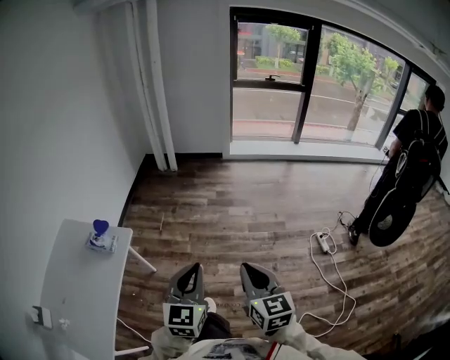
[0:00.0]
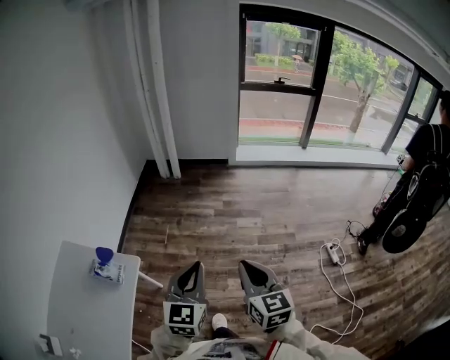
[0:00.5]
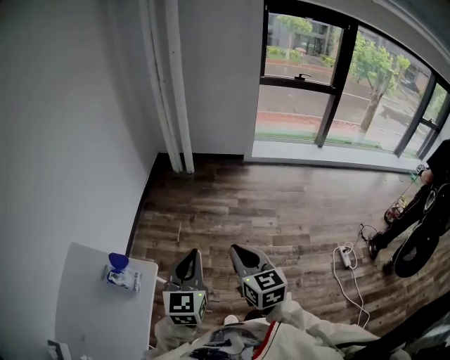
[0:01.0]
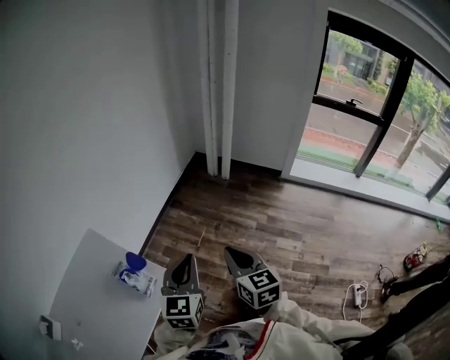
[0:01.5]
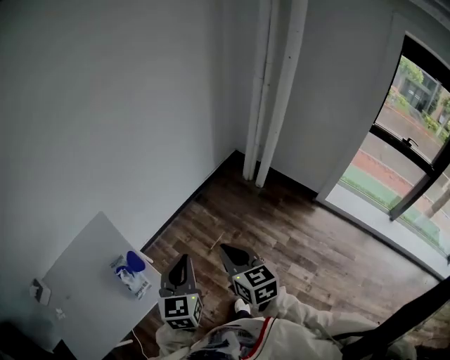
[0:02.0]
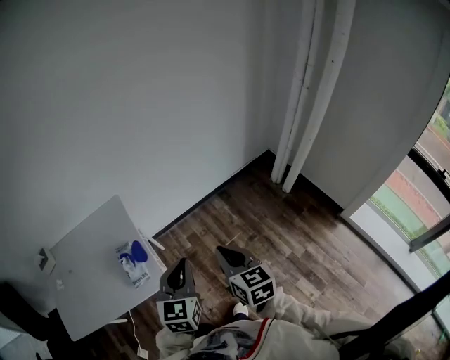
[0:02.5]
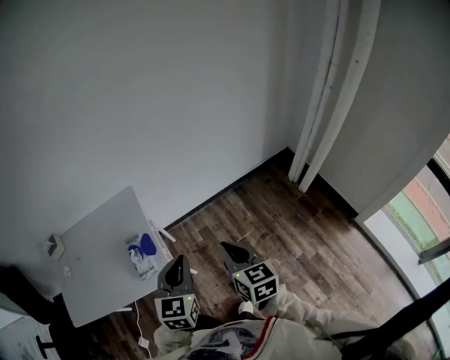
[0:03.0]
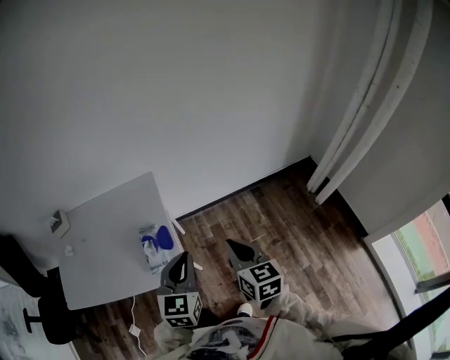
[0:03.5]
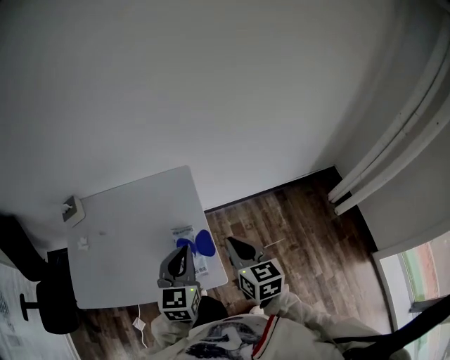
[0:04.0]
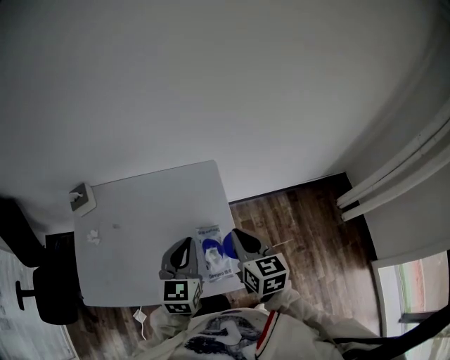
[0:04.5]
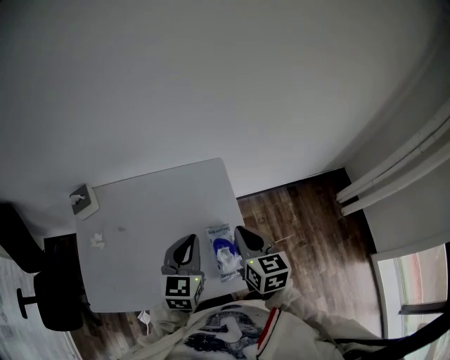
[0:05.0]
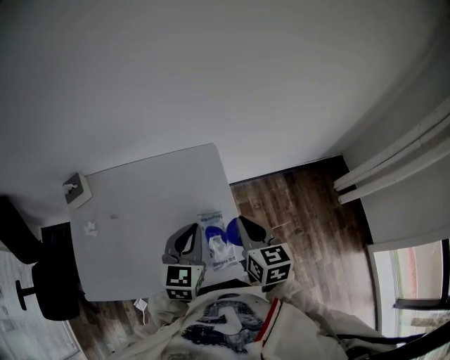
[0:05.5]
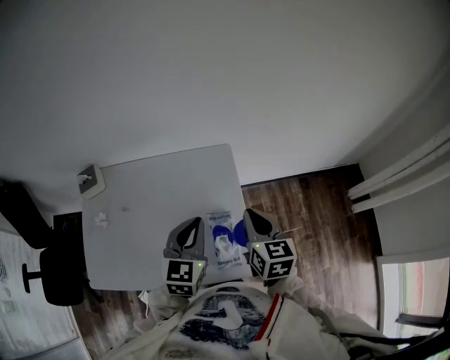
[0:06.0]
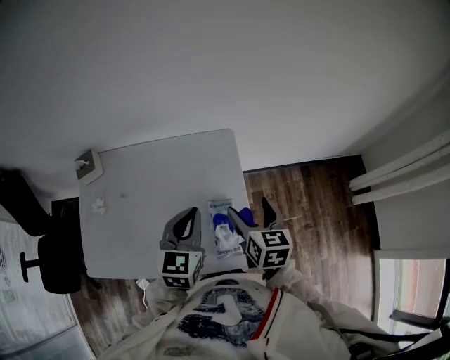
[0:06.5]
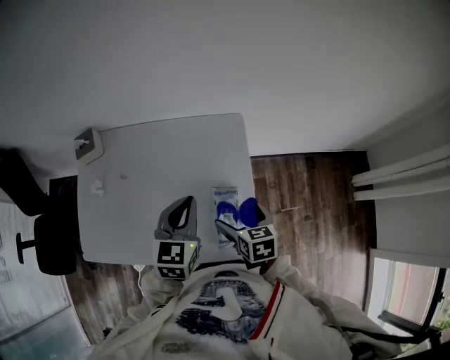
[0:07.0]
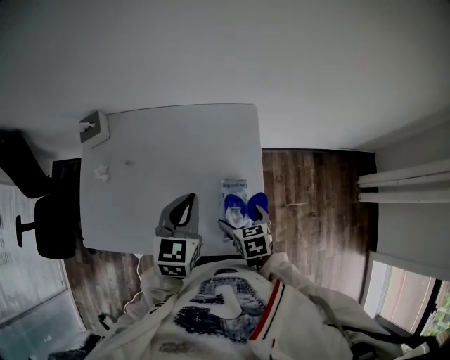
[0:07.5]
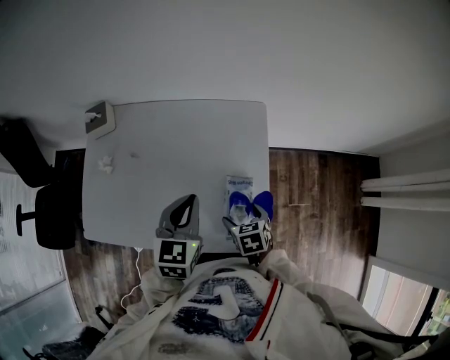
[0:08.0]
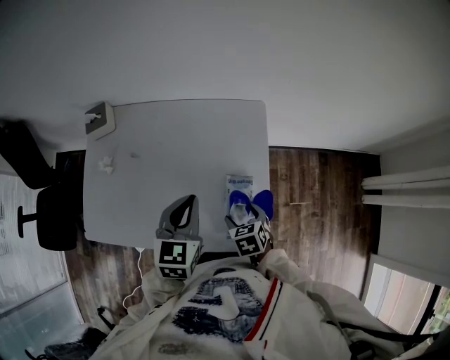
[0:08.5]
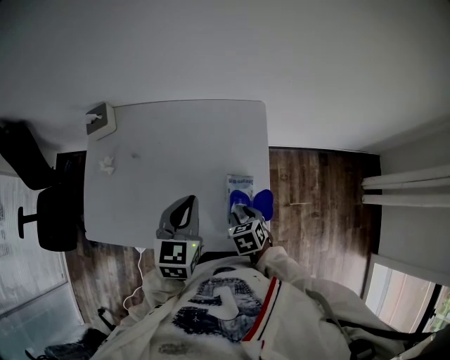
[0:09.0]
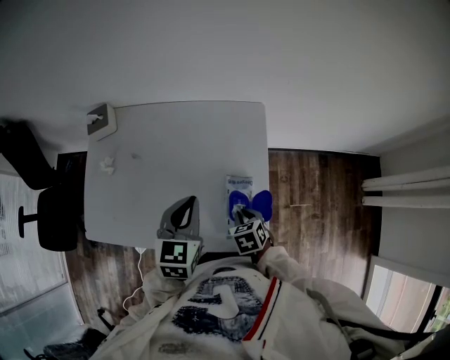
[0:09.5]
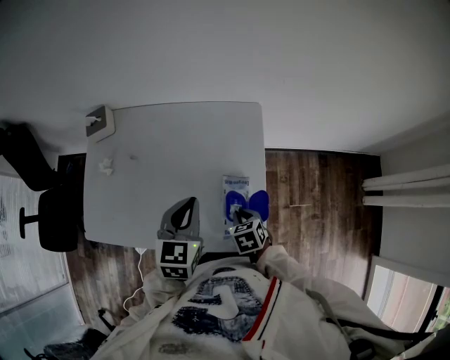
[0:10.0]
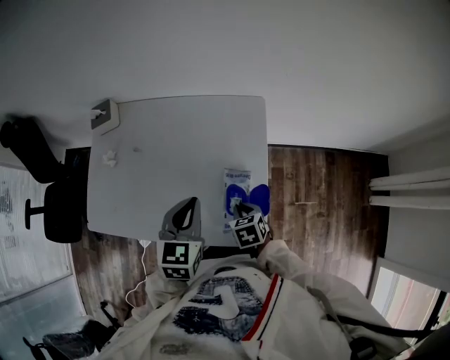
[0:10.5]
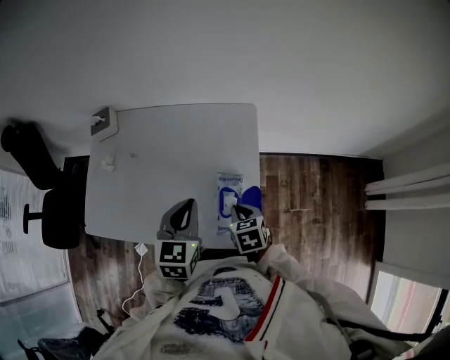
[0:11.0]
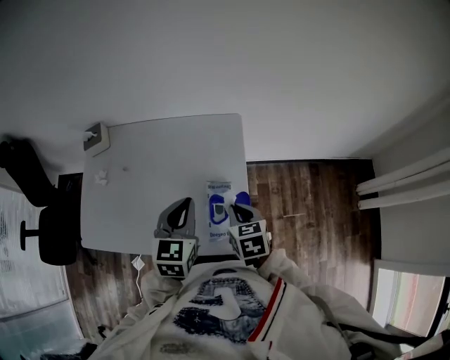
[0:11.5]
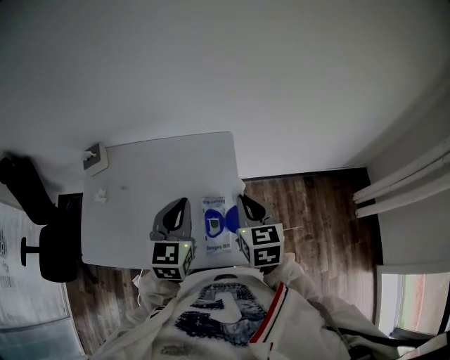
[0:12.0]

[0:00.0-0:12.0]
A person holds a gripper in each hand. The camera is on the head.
0:00.0 to 0:02.0: The pair of grippers is taken some 60 cm. The left gripper turns by approximately 50 degrees. Meanwhile the right gripper turns by some 50 degrees.
0:02.0 to 0:04.0: The left gripper changes place by about 30 cm, and turns by approximately 30 degrees. The right gripper shifts by roughly 30 cm, and swivels about 30 degrees.
0:04.0 to 0:06.0: The two grippers go roughly 15 cm to the left and forward.
0:06.0 to 0:08.0: The right gripper heads downward and to the left, covering some 25 cm, tilts its fingers about 30 degrees downward, and opens up; the left gripper travels to the left and downward by about 10 cm.
0:08.0 to 0:10.0: The right gripper closes up.
0:10.0 to 0:12.0: The right gripper is displaced upward and to the right by approximately 25 cm, and points its fingers about 30 degrees further upward, while the left gripper shifts some 10 cm upward and to the right.

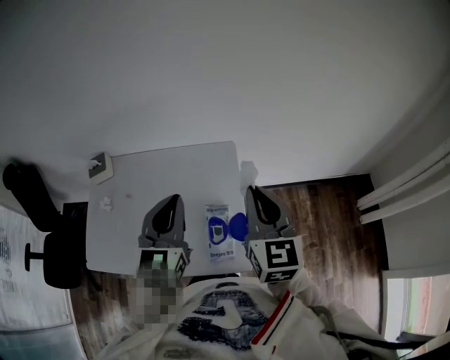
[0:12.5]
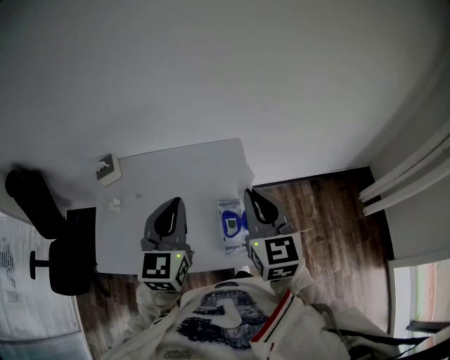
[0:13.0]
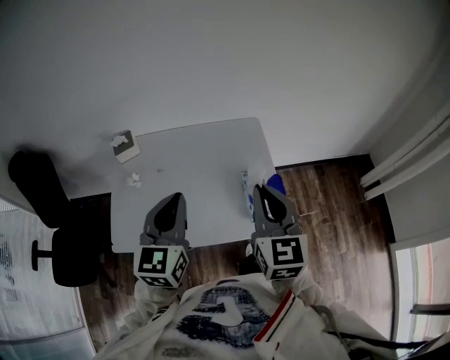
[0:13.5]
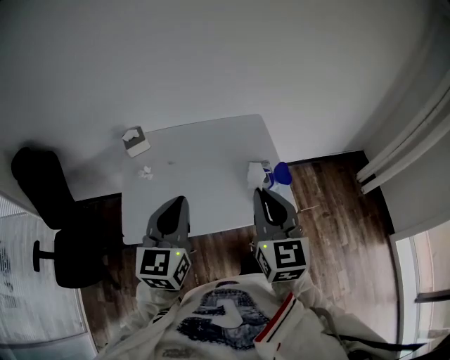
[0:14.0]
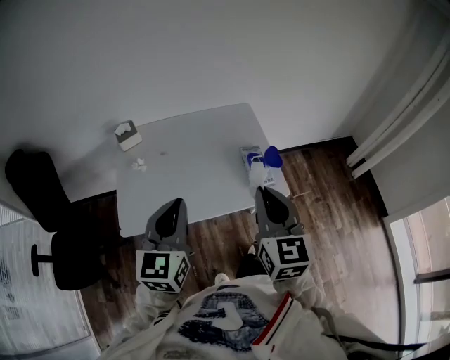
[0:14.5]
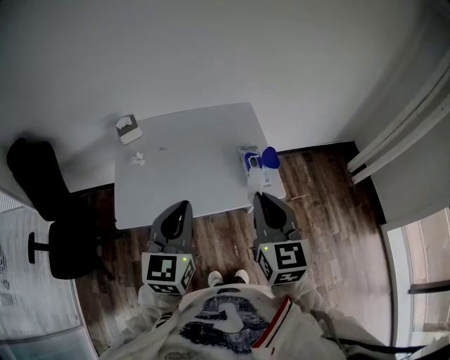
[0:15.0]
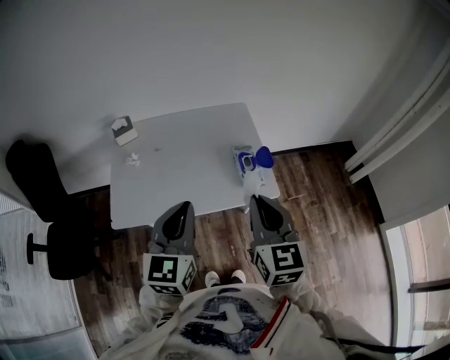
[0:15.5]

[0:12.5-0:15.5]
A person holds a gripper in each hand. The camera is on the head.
0:12.5 to 0:14.0: The left gripper is displaced to the left and backward by approximately 30 cm. Meanwhile the right gripper shifts approximately 30 cm backward and to the left.
0:14.0 to 0:15.5: The left gripper shifts about 10 cm backward and to the right. The right gripper shifts some 5 cm backward.

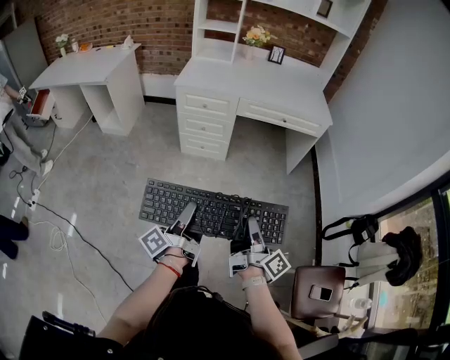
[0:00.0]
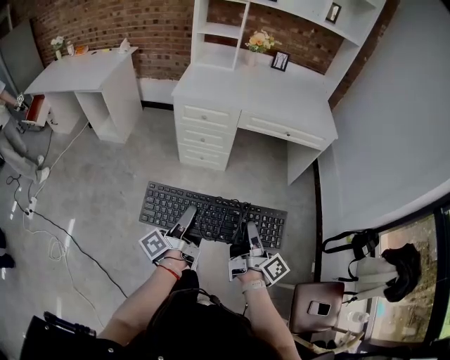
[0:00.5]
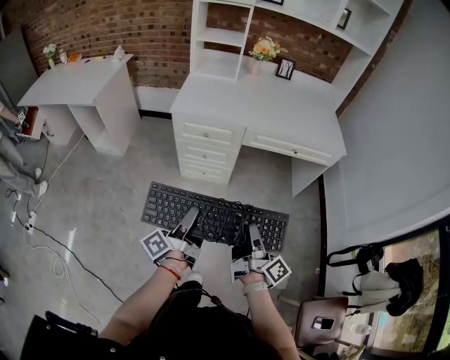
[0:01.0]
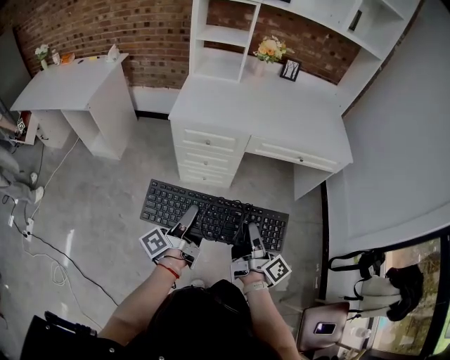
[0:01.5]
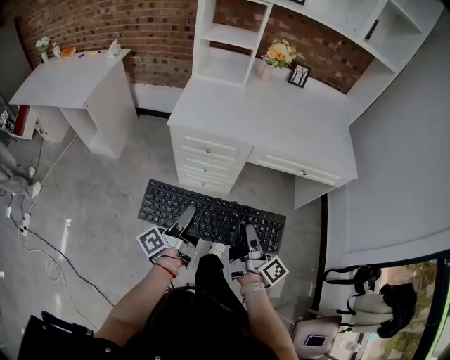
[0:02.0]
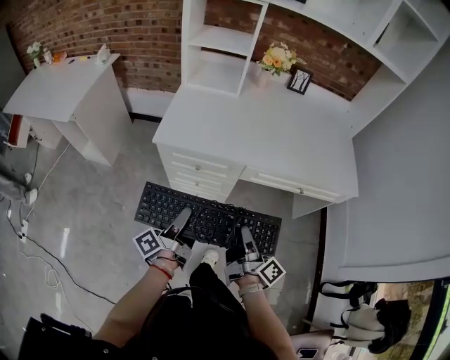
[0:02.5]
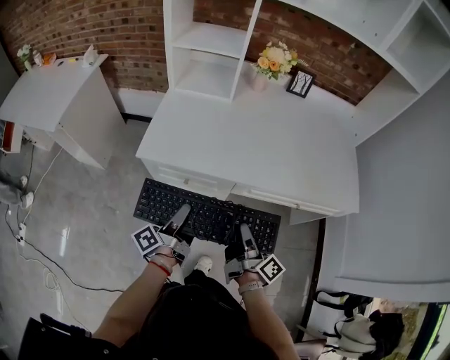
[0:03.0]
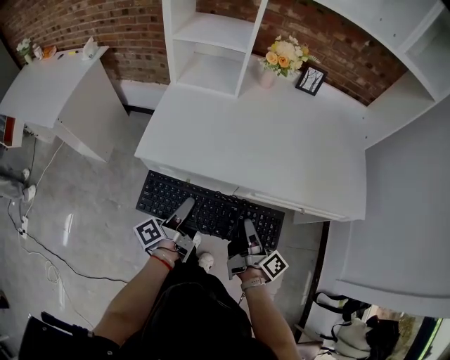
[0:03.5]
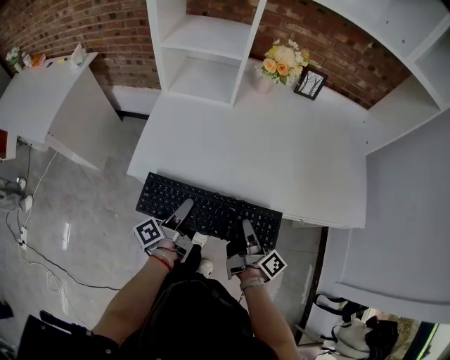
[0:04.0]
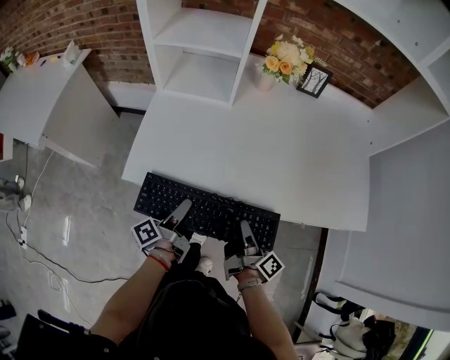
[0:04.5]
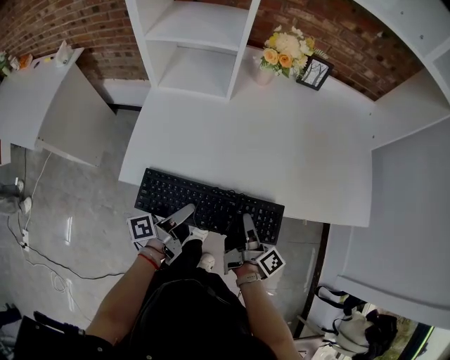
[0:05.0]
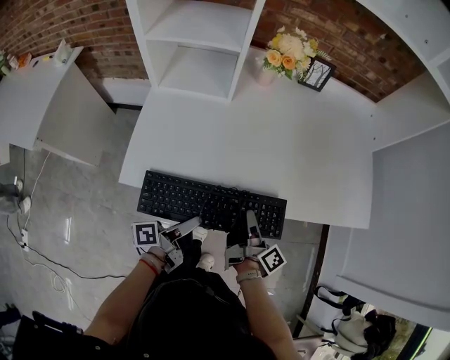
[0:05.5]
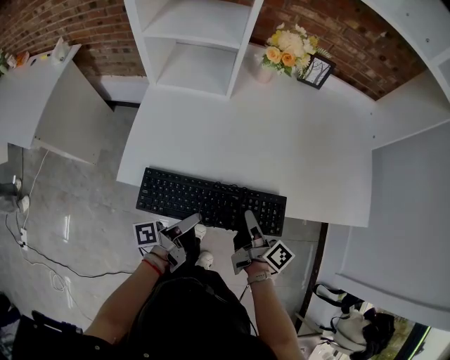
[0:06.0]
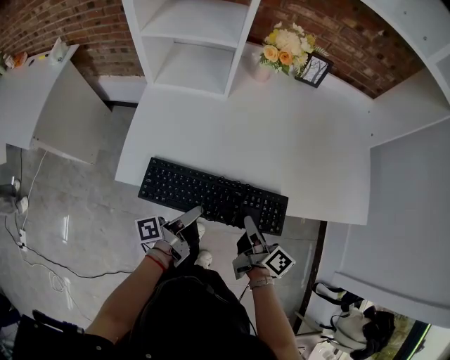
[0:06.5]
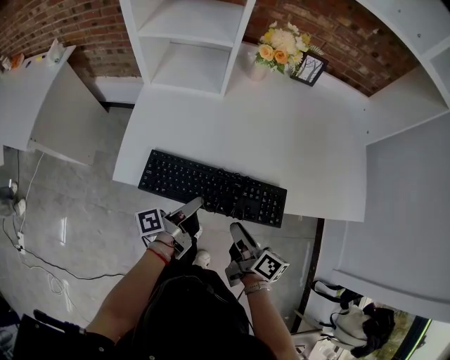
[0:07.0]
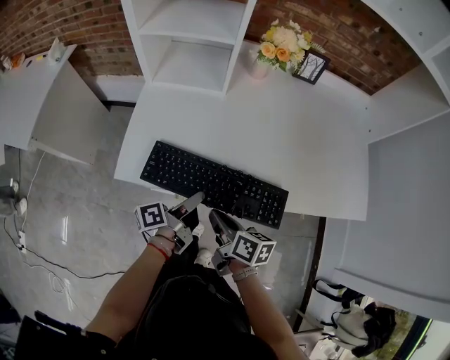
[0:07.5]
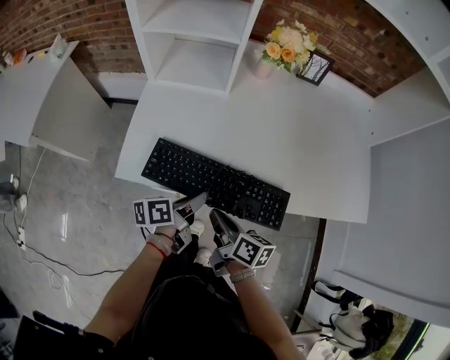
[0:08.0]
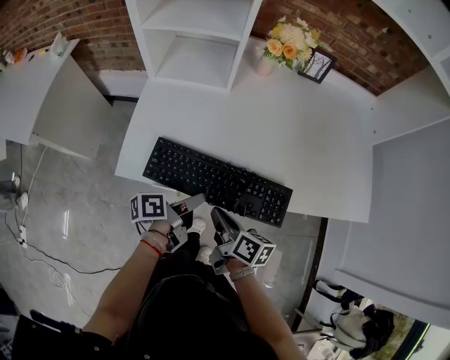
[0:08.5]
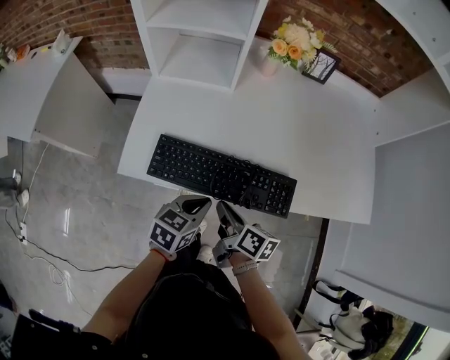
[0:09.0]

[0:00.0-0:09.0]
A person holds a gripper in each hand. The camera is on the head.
0:00.0 to 0:02.0: The two grippers go roughly 35 cm forward.
0:02.0 to 0:04.5: The two grippers go approximately 30 cm forward.
0:04.5 to 0:07.0: The right gripper changes its angle by about 30 degrees, while the left gripper shifts by some 5 cm.
0:07.0 to 0:09.0: The right gripper heads to the left, covering some 5 cm, and closes. Meanwhile the left gripper rolls clockwise, seen from behind, by about 70 degrees.

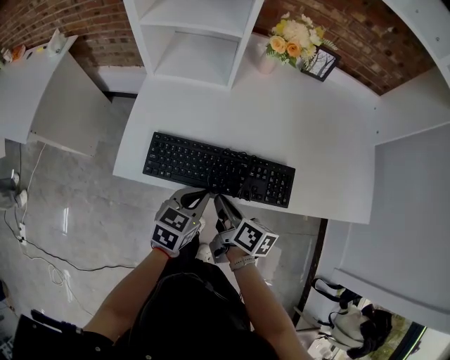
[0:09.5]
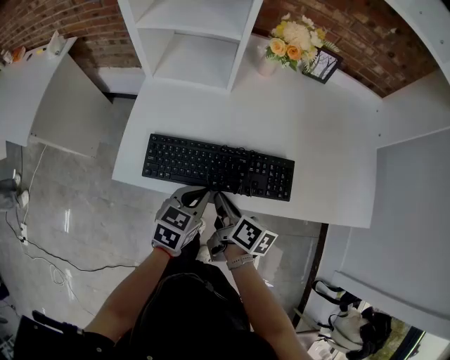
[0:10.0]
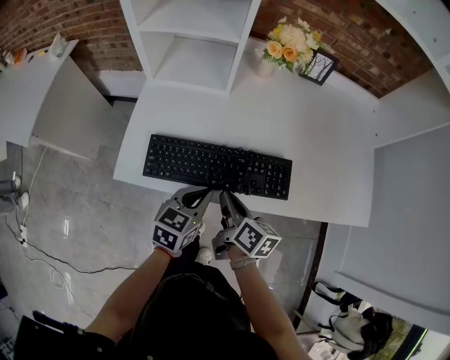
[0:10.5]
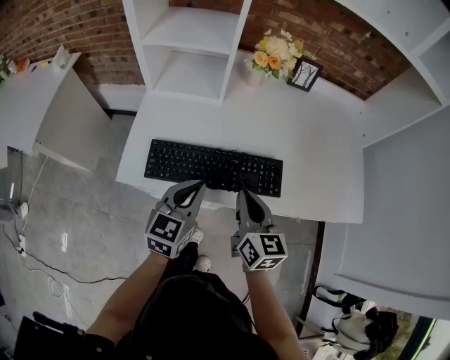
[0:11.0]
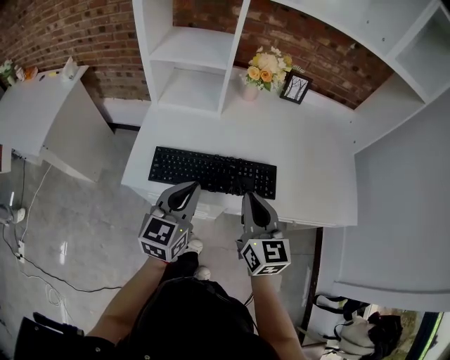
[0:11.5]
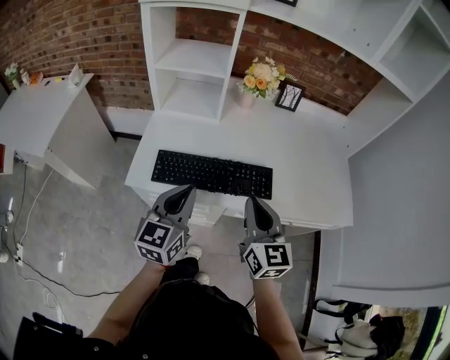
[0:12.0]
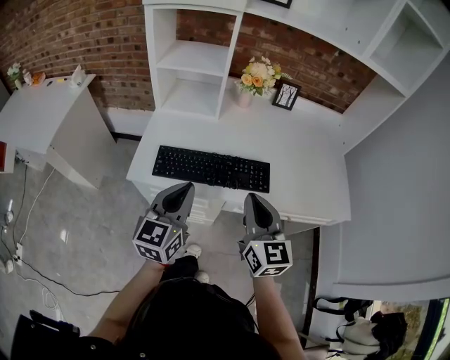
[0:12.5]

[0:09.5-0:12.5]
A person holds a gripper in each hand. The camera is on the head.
0:09.5 to 0:11.0: The right gripper is displaced upward and to the right by about 15 cm, and rotates approximately 40 degrees, while the left gripper moves upward, approximately 10 cm, and turns by some 20 degrees.
0:11.0 to 0:12.5: Both grippers move upward and backward, about 10 cm.
